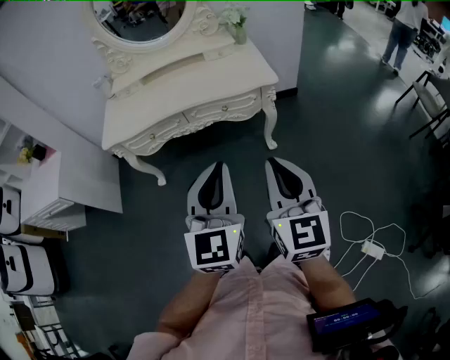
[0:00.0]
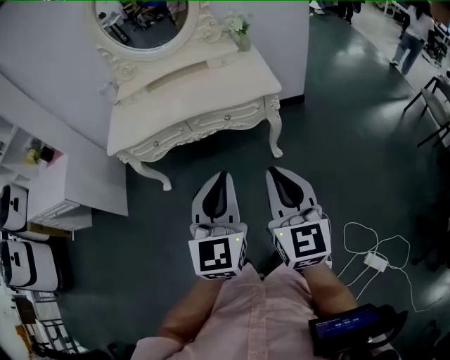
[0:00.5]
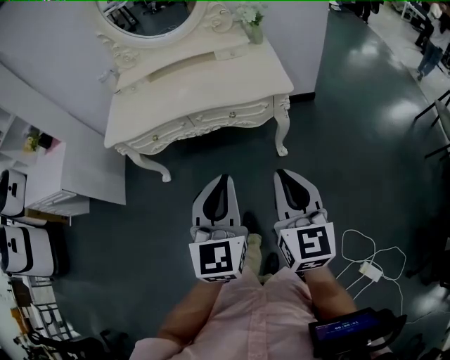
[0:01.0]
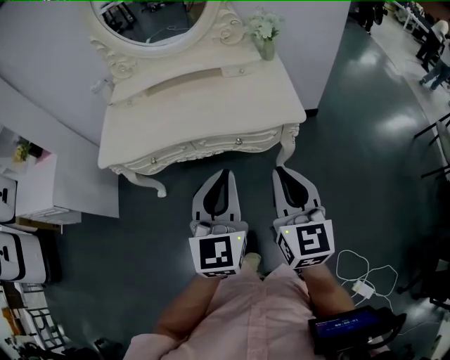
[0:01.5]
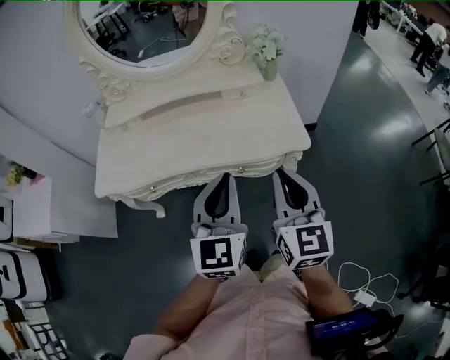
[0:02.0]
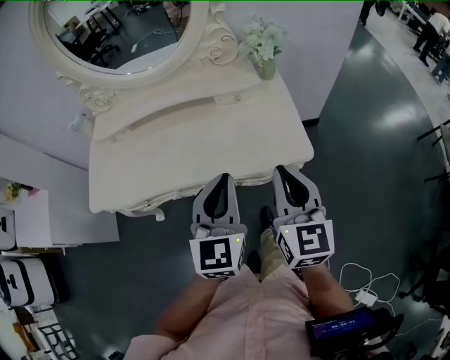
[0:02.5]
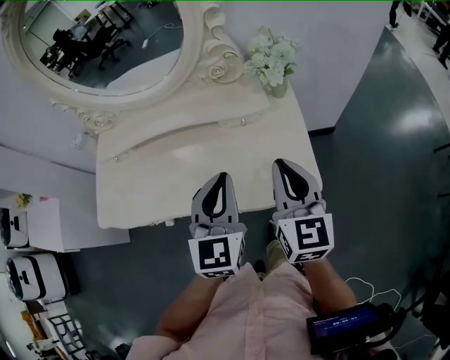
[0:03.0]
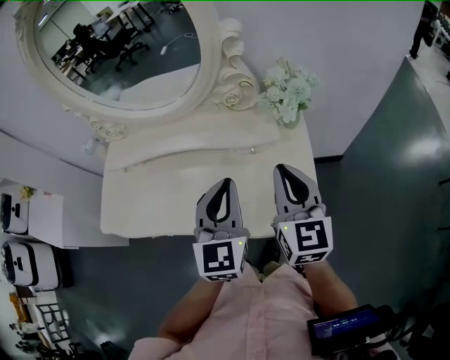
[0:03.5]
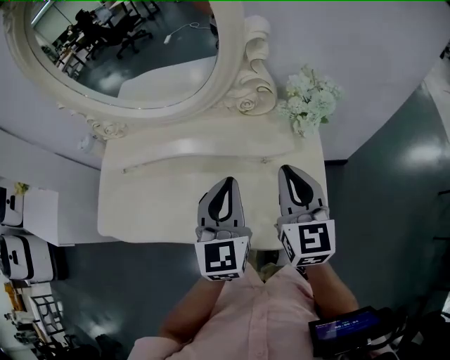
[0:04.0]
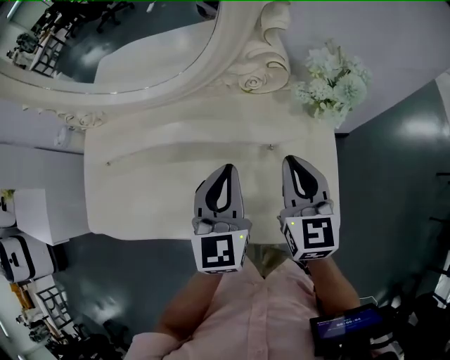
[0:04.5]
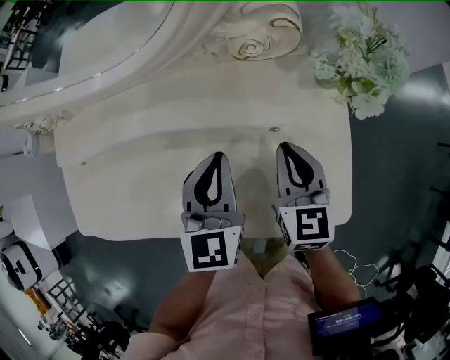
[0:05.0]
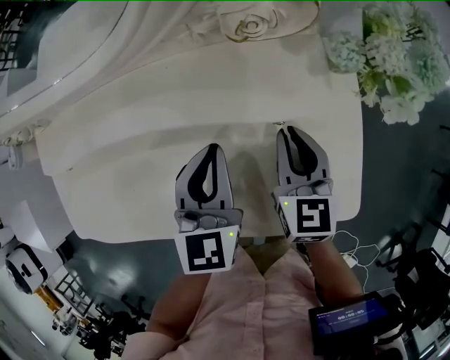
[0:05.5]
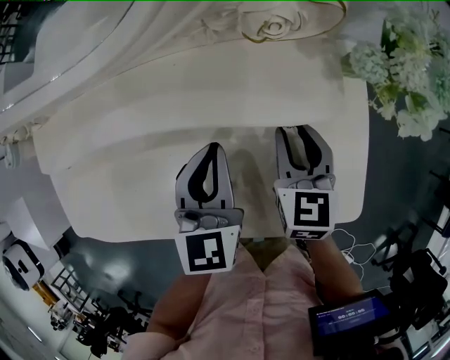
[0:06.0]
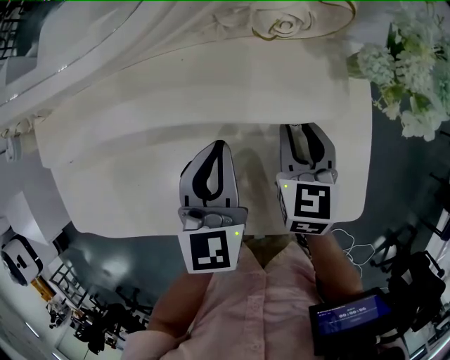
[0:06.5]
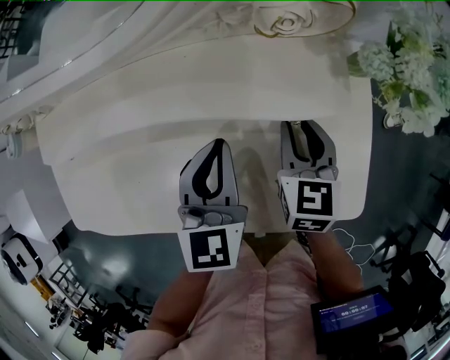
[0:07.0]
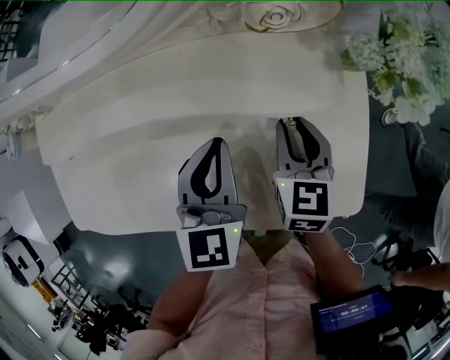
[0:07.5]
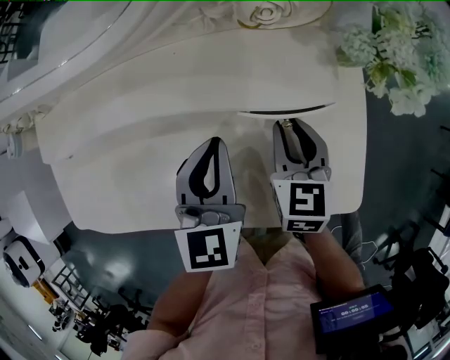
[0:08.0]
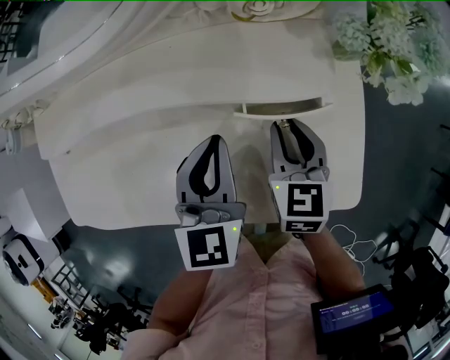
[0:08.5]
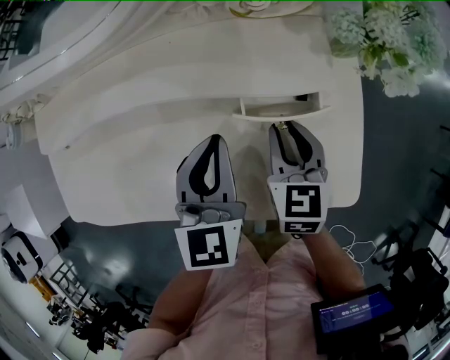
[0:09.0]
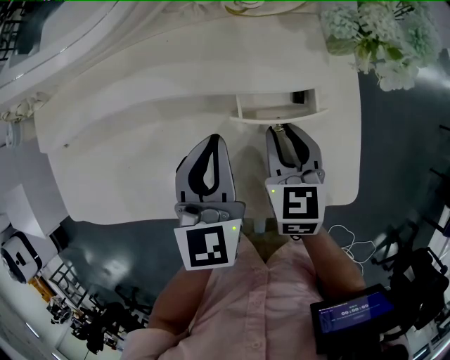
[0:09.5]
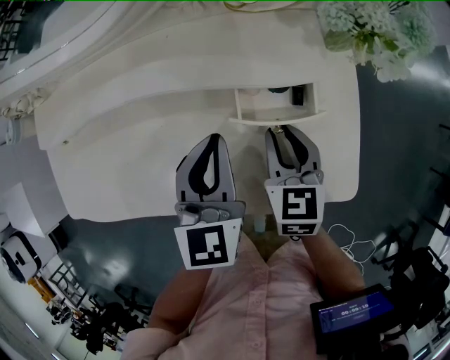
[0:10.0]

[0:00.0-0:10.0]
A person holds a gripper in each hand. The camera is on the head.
0:00.0 to 0:02.0: The two grippers go approximately 35 cm forward.
0:02.0 to 0:04.0: Both grippers travel together forward, some 35 cm.
0:04.0 to 0:06.0: The right gripper shifts roughly 20 cm downward, rotates roughly 30 degrees, and opens; the left gripper heads downward and forward, covering approximately 15 cm.
0:06.0 to 0:08.0: The grippers move only a little.
0:08.0 to 0:10.0: The right gripper shifts about 5 cm backward.

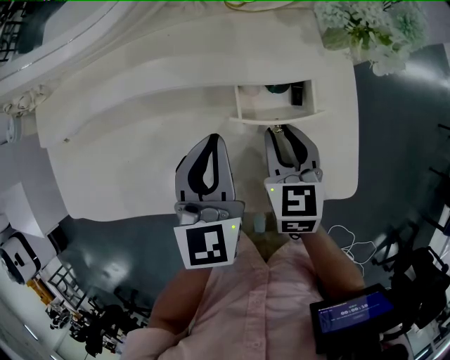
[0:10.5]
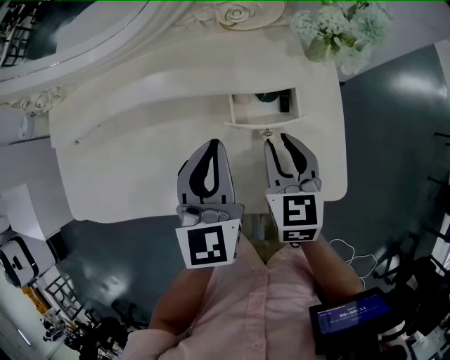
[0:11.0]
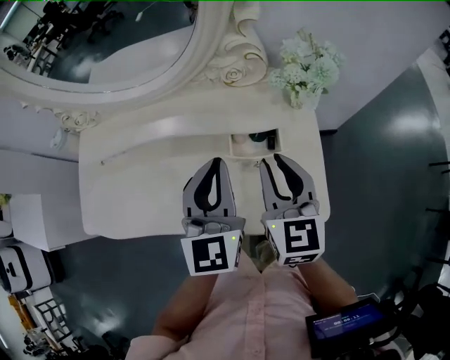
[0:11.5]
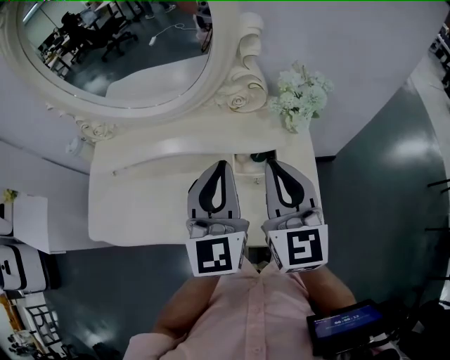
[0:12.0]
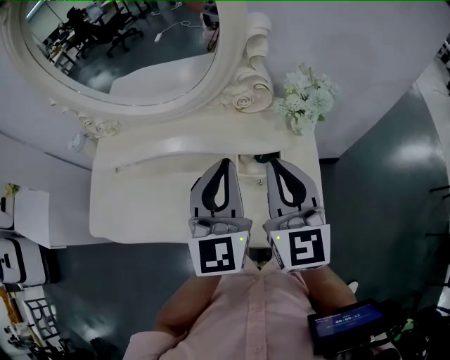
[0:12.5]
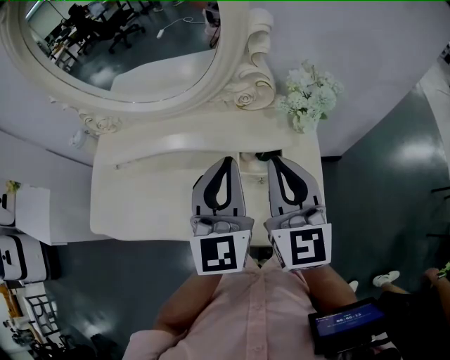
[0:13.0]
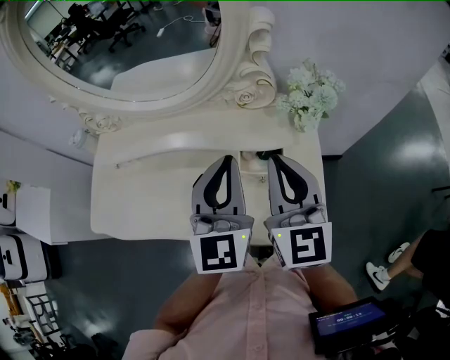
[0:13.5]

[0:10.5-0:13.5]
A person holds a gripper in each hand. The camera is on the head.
0:10.5 to 0:12.0: Both grippers travel together upward, roughly 20 cm. The left gripper turns by roughly 20 degrees. Meanwhile the right gripper points its fingers about 30 degrees further upward, and closes up.
0:12.0 to 0:13.5: The two grippers keep their place.

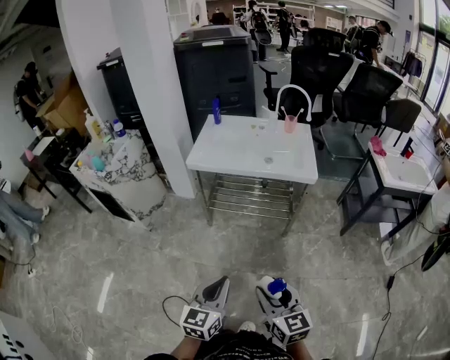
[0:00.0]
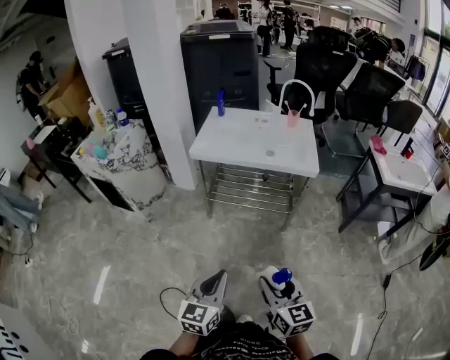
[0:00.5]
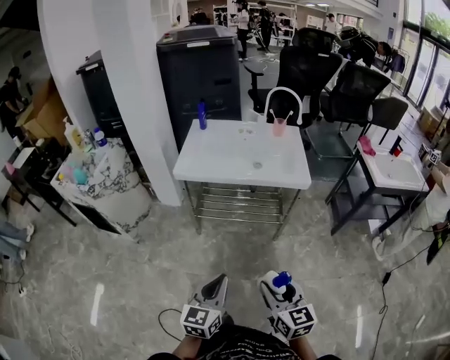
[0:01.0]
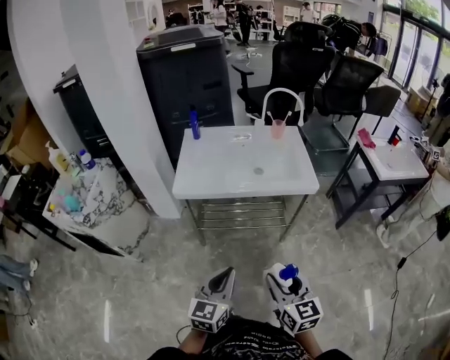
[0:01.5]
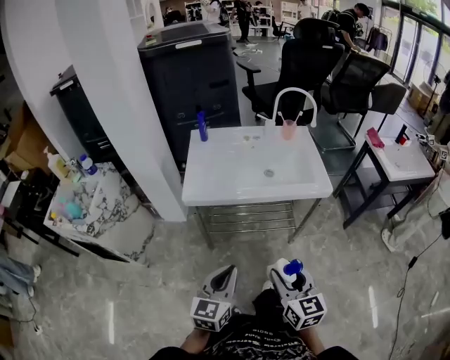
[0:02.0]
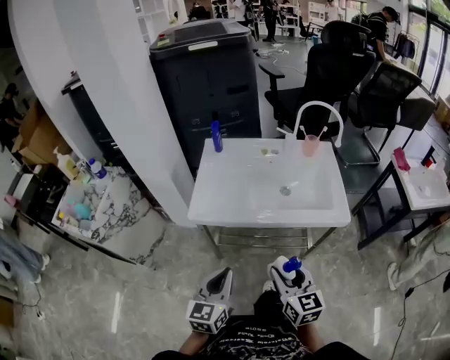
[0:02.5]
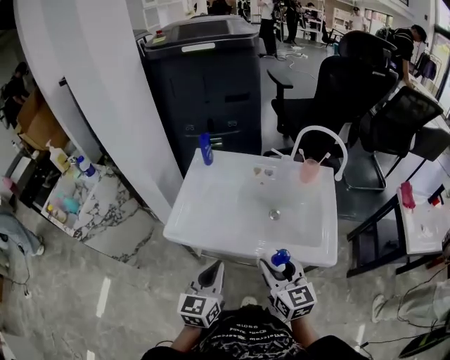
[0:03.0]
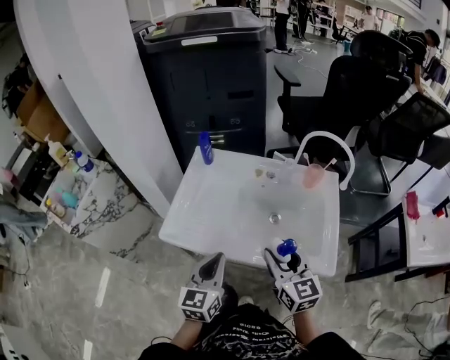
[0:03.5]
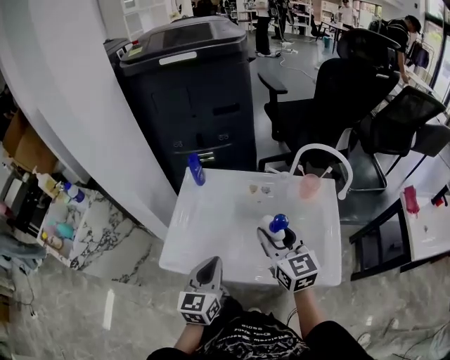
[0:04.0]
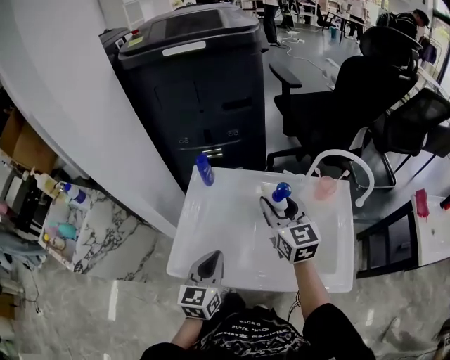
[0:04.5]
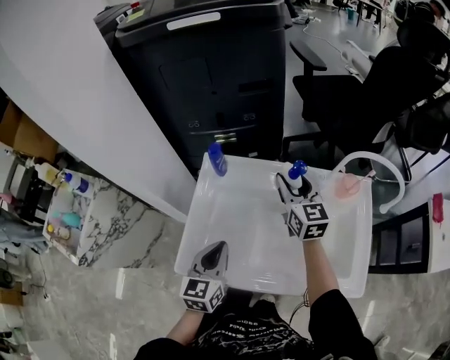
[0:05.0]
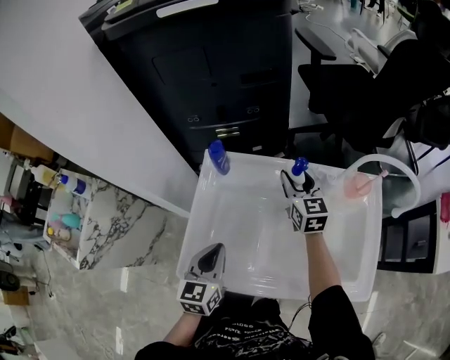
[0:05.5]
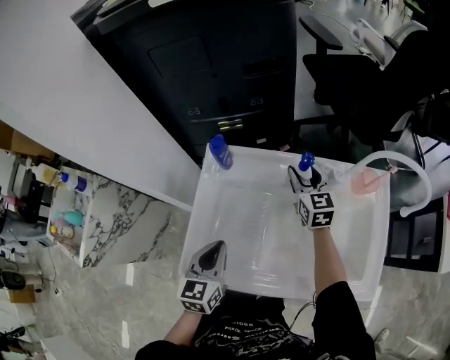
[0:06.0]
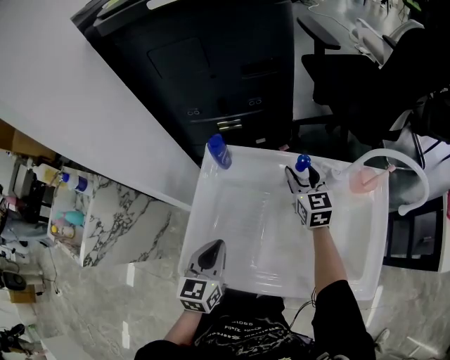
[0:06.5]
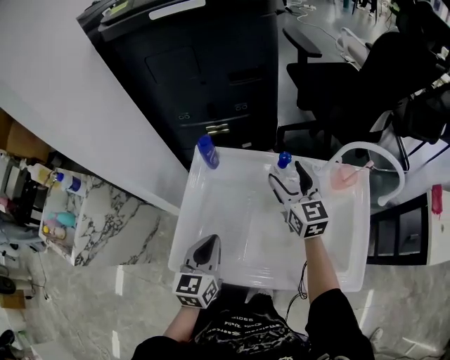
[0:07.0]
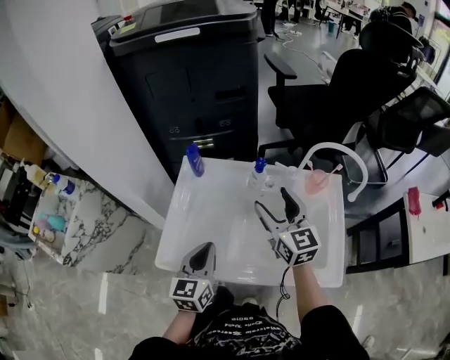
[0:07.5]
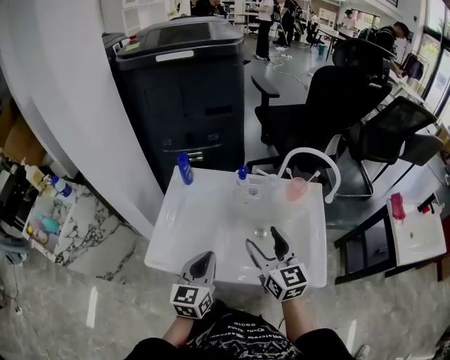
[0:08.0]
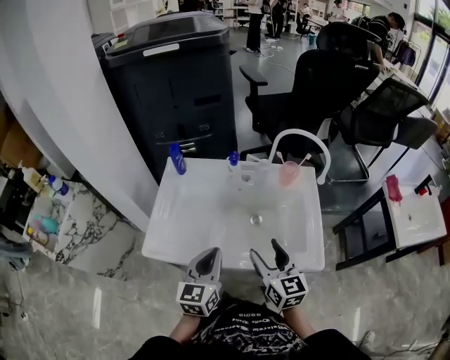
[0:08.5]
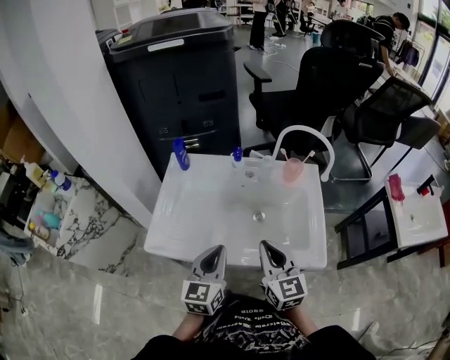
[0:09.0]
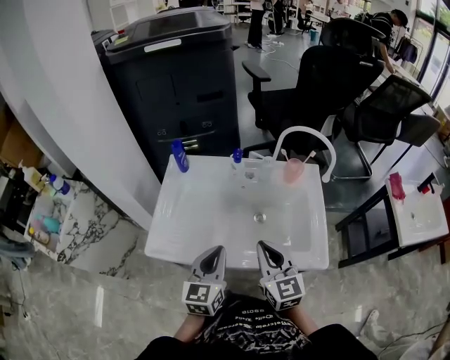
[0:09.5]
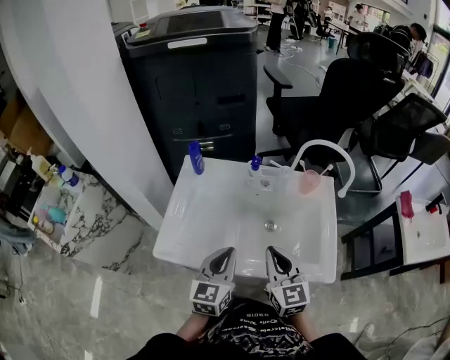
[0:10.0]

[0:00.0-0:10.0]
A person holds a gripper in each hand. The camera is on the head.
0:00.0 to 0:02.0: Both grippers move forward and to the left, approximately 25 cm.
0:02.0 to 0:04.0: The grippers both shift forward by some 40 cm.
0:04.0 to 0:06.0: The left gripper goes some 15 cm forward, to the left and downward, while the right gripper travels forward and downward by about 30 cm.
0:06.0 to 0:08.0: The right gripper travels backward and upward by roughly 35 cm, and opens its fingers; the left gripper is displaced backward, to the right and upward by some 15 cm.
0:08.0 to 0:10.0: The right gripper is displaced backward by approximately 5 cm, and closes.

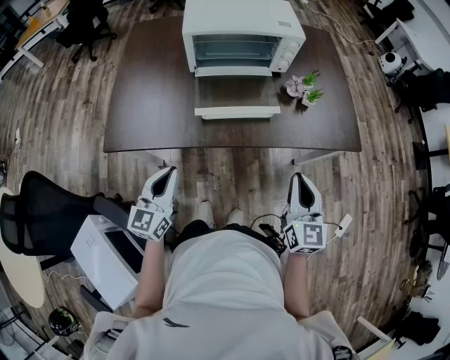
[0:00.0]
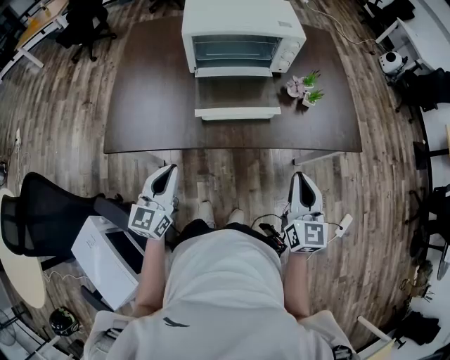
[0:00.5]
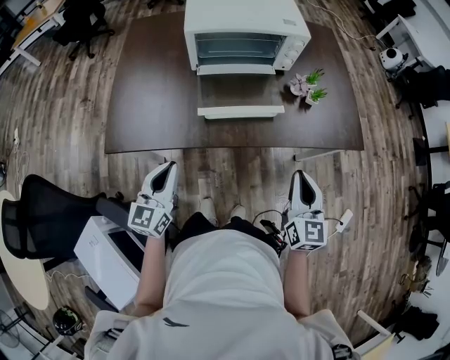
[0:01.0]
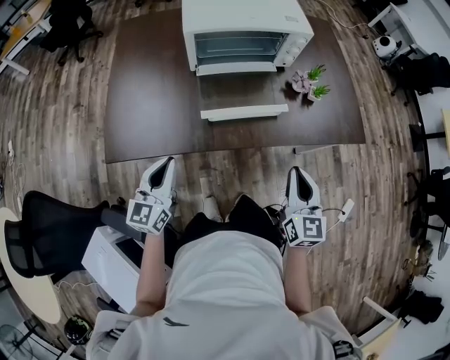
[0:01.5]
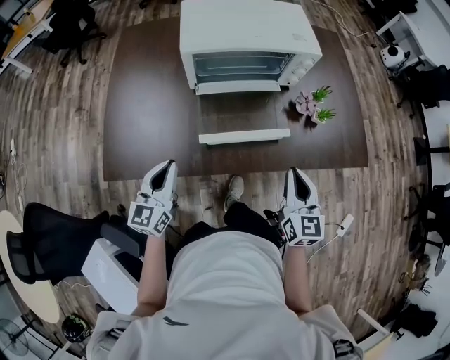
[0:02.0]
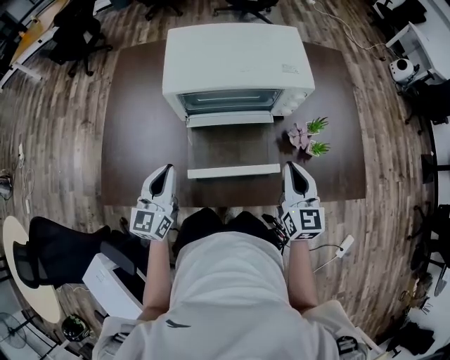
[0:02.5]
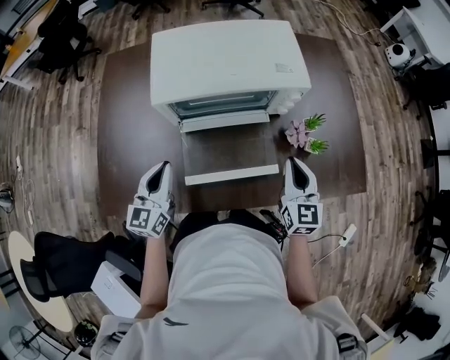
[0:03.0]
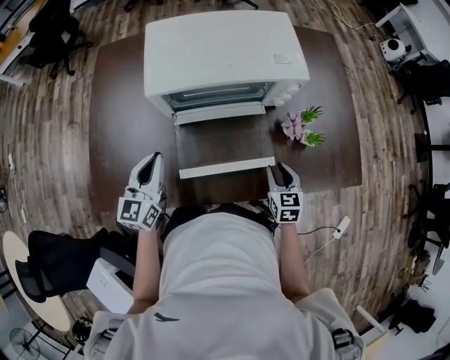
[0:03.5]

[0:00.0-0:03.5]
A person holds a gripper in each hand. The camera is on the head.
0:00.0 to 0:02.0: The right gripper moves forward and to the left, some 15 cm, while the left gripper goes approximately 15 cm forward.
0:02.0 to 0:03.5: The right gripper moves downward and forward, about 20 cm, changes its angle by roughly 20 degrees, and opens up. Meanwhile the left gripper heads forward, covering some 15 cm.
